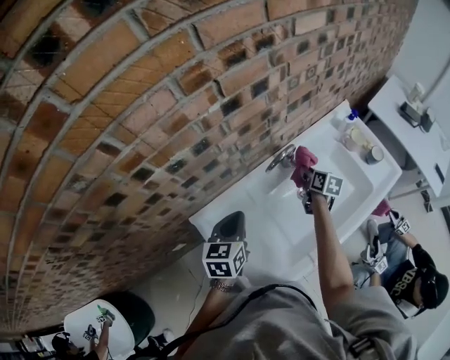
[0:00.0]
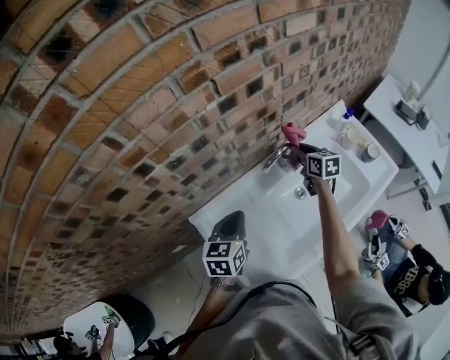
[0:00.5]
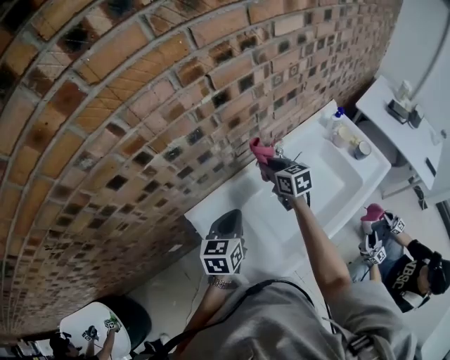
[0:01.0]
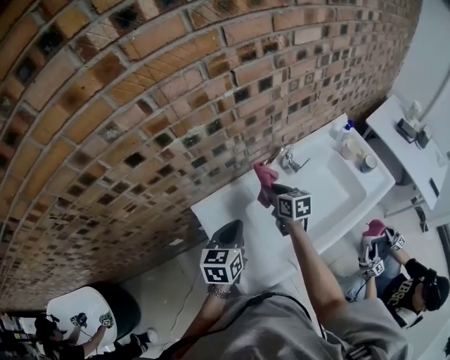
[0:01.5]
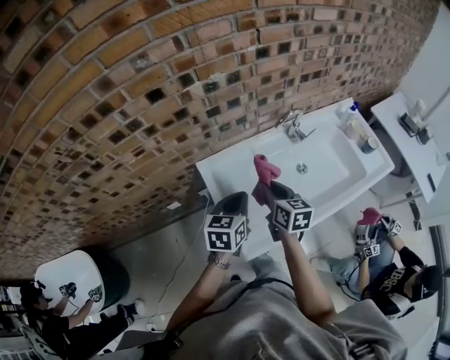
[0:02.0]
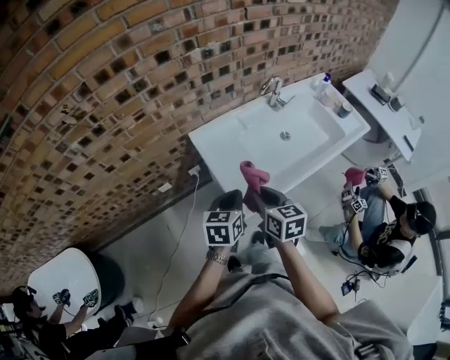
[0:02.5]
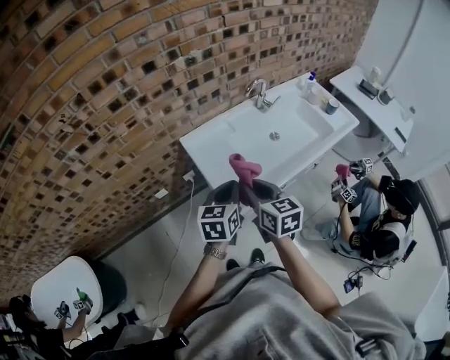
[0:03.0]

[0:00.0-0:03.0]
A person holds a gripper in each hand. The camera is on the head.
0:00.0 to 0:01.5: The left gripper goes some 10 cm backward, while the right gripper travels to the left, backward and upward by roughly 20 cm, and changes its angle by roughly 30 degrees.
0:01.5 to 0:03.0: The left gripper goes about 25 cm backward. Meanwhile the right gripper moves backward, some 35 cm.

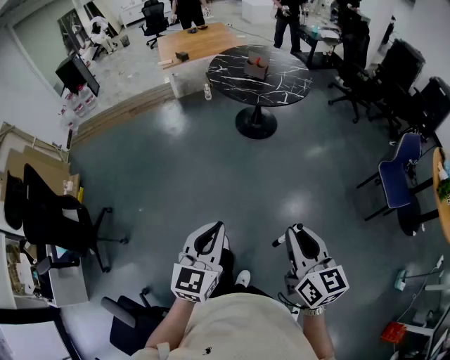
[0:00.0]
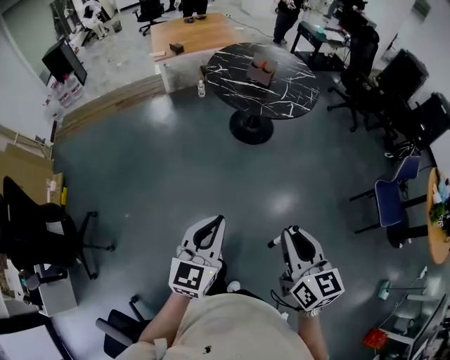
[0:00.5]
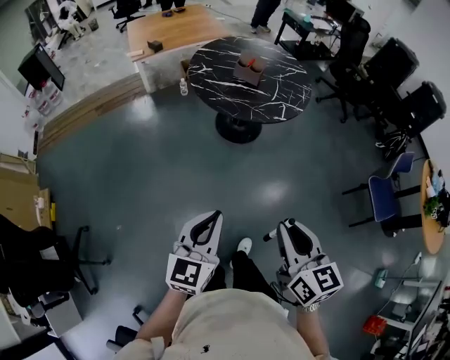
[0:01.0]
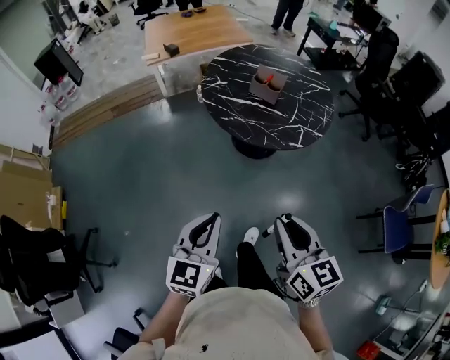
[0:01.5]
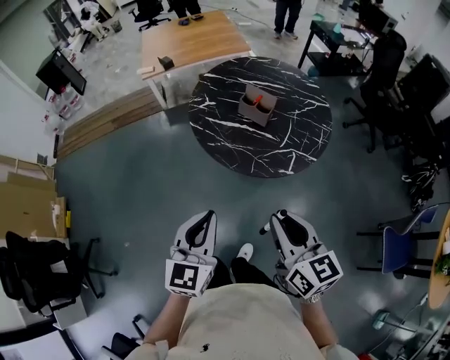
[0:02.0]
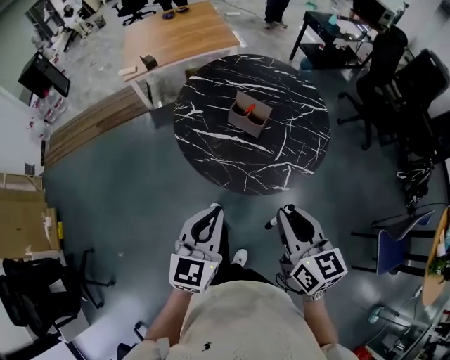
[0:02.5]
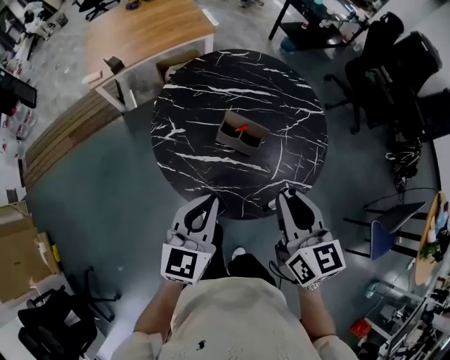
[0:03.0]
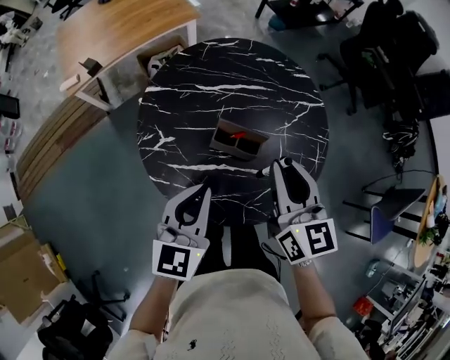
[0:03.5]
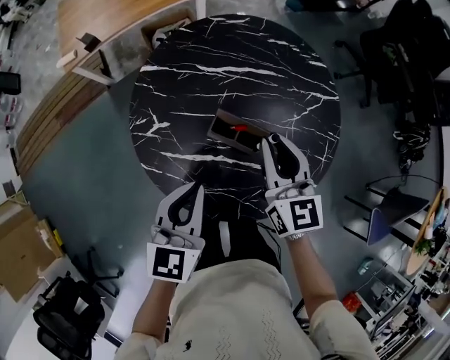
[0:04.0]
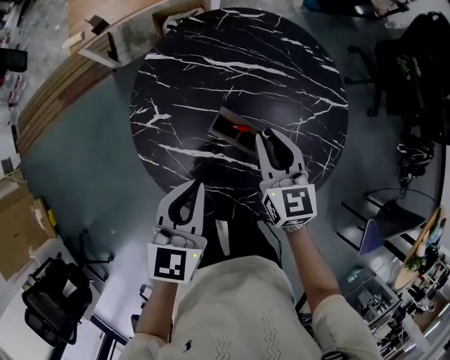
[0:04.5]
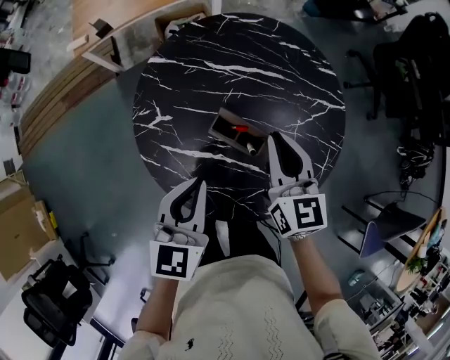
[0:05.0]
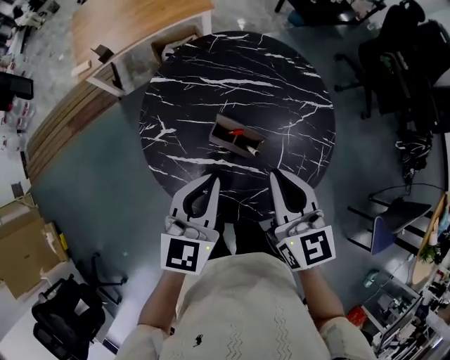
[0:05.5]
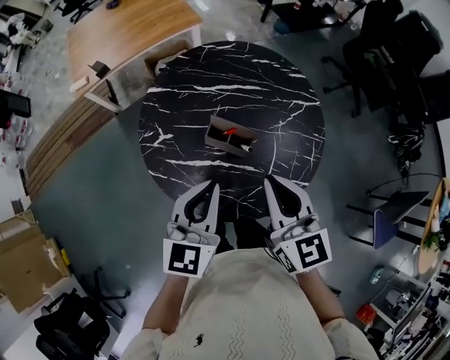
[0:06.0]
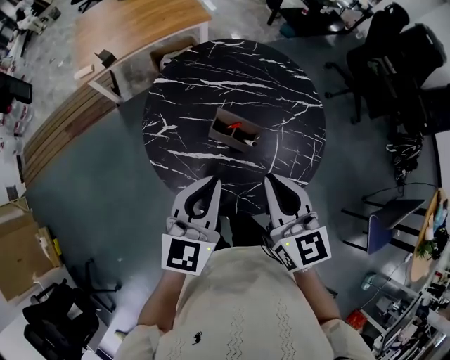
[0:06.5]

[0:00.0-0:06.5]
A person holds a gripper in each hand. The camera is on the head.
0:00.0 to 0:02.0: The two grippers travel together, forward, about 60 cm.
0:02.0 to 0:04.5: Both grippers are carried forward, some 50 cm.
0:04.5 to 0:06.5: The left gripper moves upward and backward, some 10 cm; the right gripper moves backward and upward, some 20 cm.

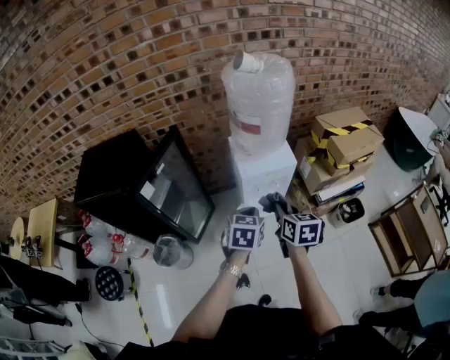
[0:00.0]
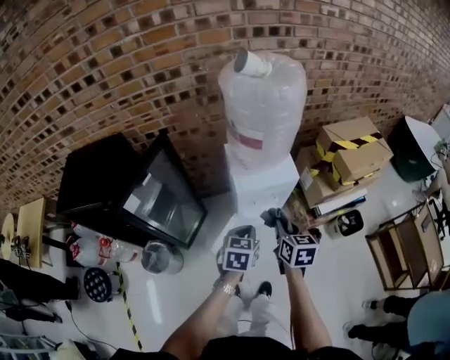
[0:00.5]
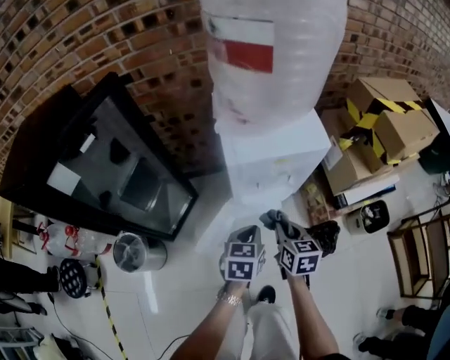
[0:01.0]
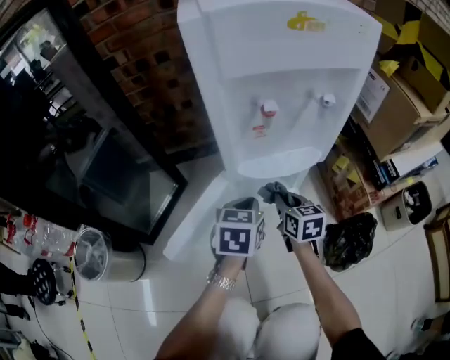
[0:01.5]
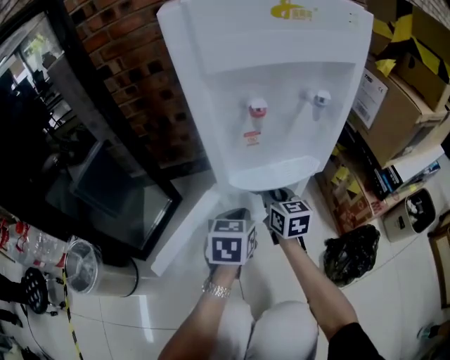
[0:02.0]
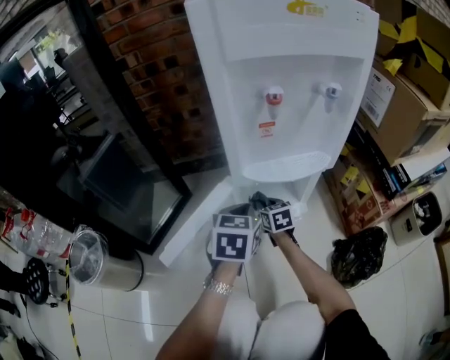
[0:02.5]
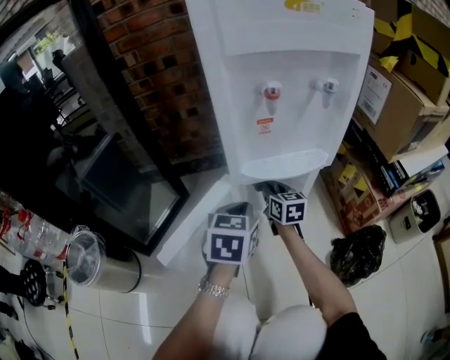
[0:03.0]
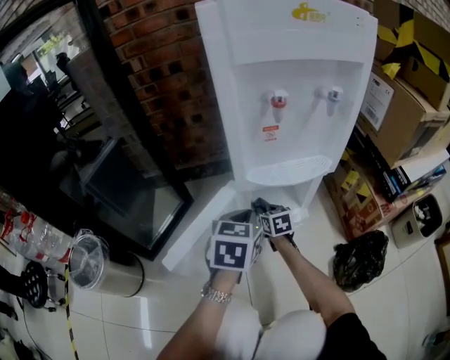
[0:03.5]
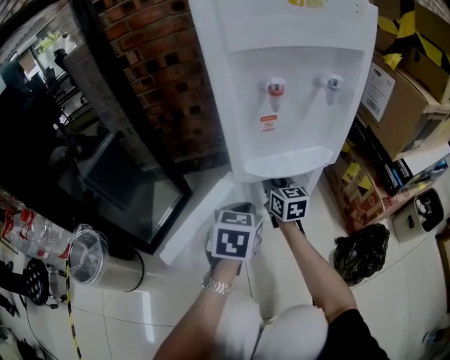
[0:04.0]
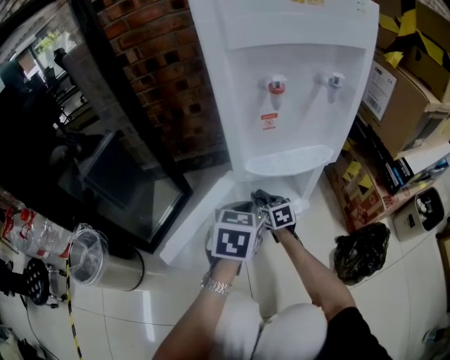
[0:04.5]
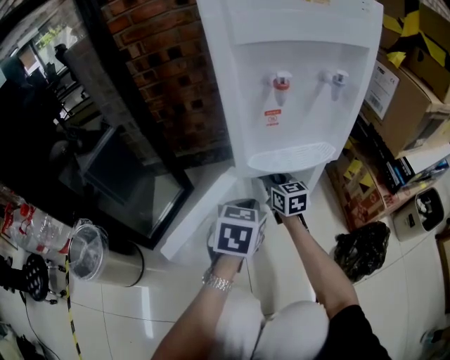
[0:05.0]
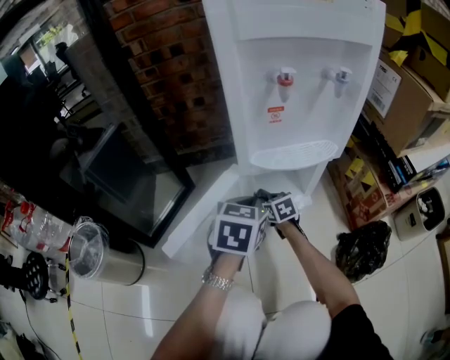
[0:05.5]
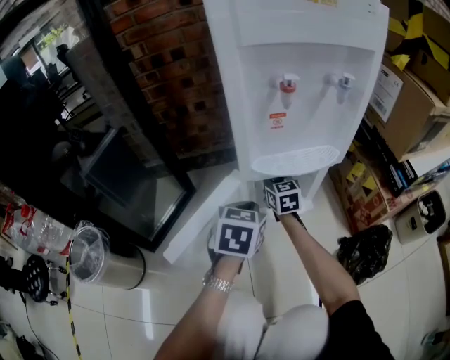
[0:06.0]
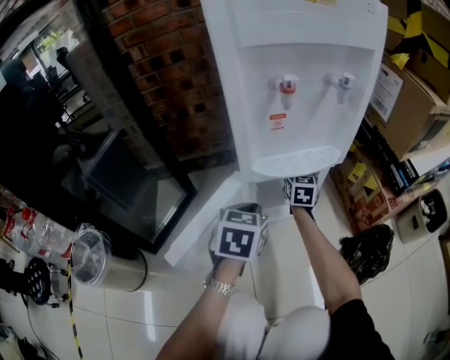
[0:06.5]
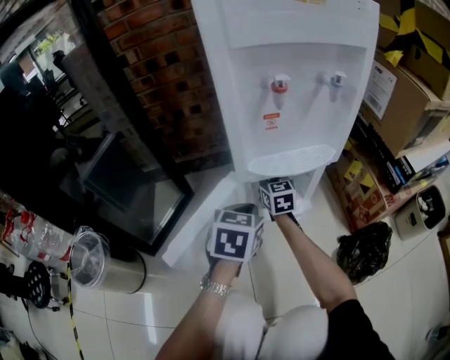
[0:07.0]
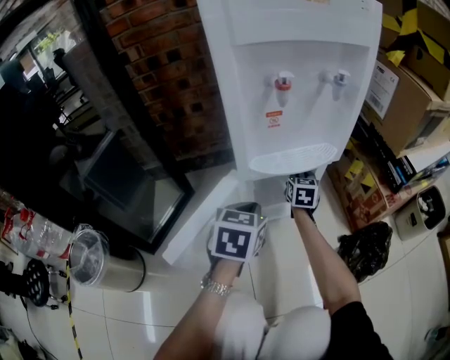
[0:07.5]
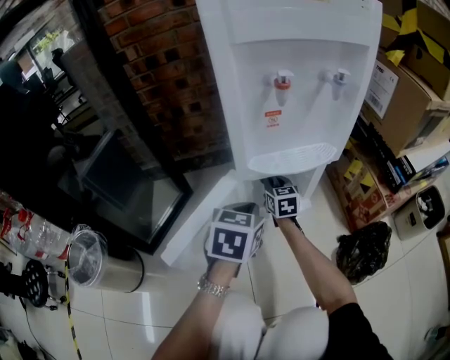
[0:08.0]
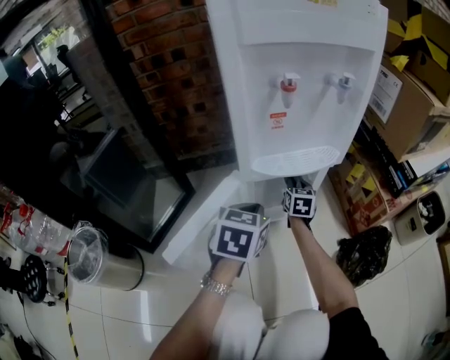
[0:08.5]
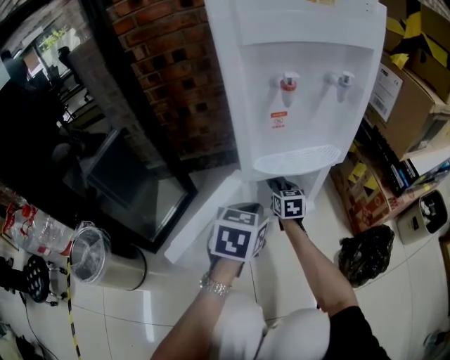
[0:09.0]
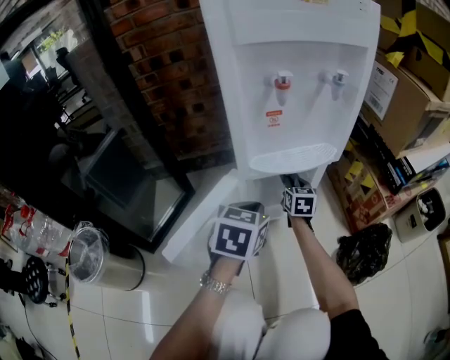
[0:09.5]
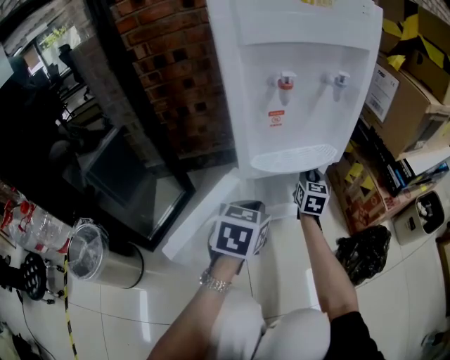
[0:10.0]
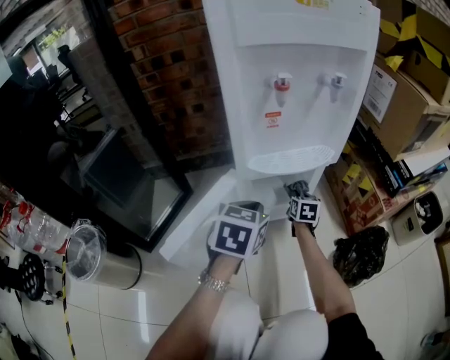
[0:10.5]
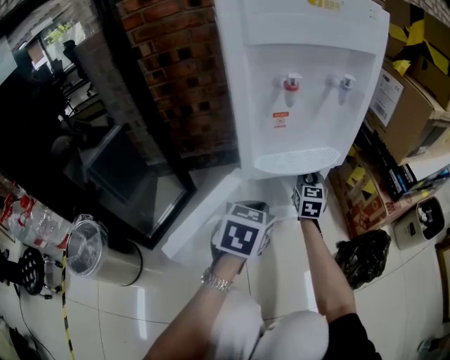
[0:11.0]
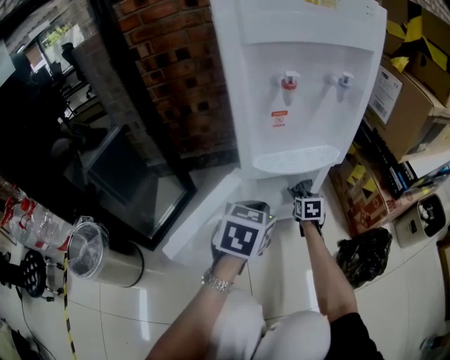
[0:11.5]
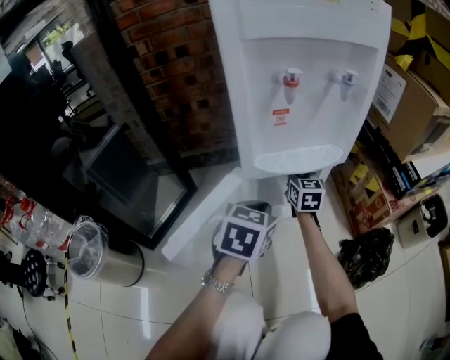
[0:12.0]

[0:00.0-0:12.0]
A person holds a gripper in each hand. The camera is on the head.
0:00.0 to 0:02.0: Both grippers move downward, roughly 70 cm.
0:02.0 to 0:04.0: The right gripper swings up and down, some 15 cm each way, with 3 reversals.
0:04.0 to 0:06.0: The right gripper swings up and down, about 15 cm each way, with 3 reversals.
0:06.0 to 0:08.0: The right gripper moves left and right over some 10 cm, changing direction 3 times.
0:08.0 to 0:10.0: The right gripper swings left and right, approximately 15 cm each way, with 2 reversals, and turns by some 20 degrees.
0:10.0 to 0:12.0: The right gripper goes up and down, approximately 15 cm each way, reversing 3 times.

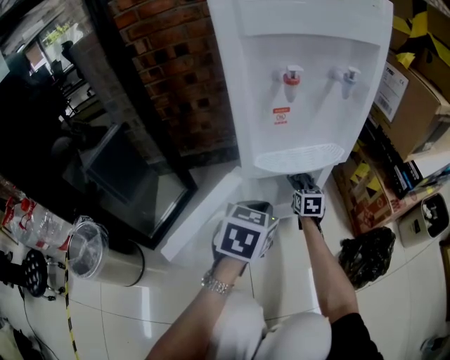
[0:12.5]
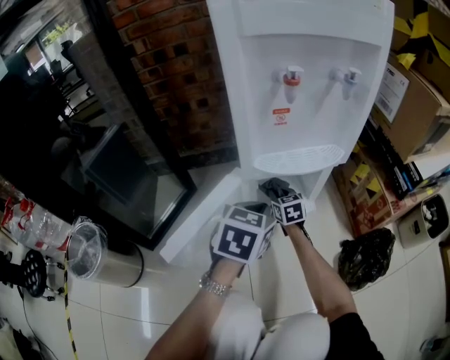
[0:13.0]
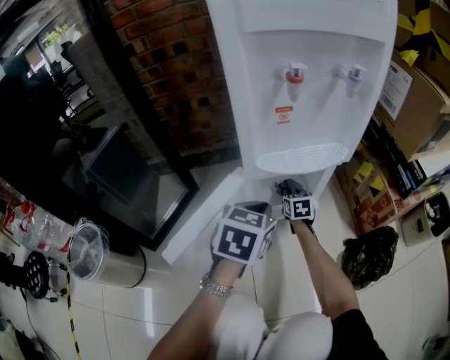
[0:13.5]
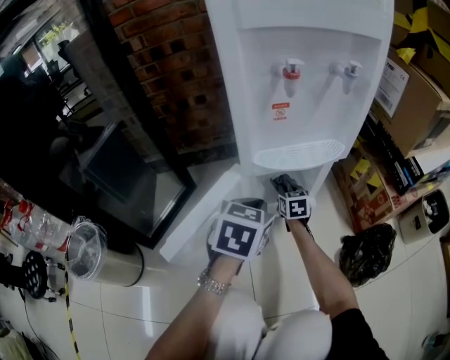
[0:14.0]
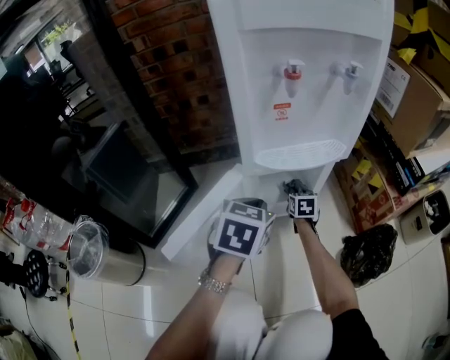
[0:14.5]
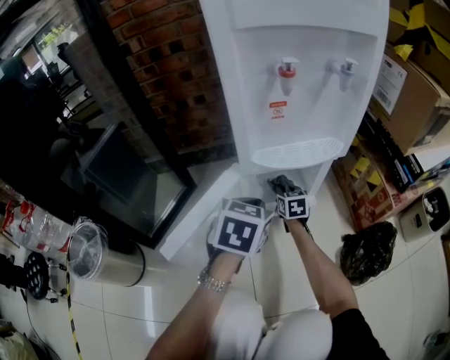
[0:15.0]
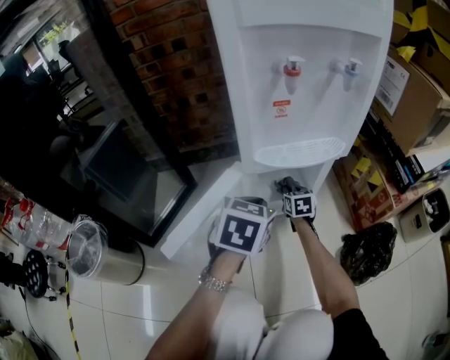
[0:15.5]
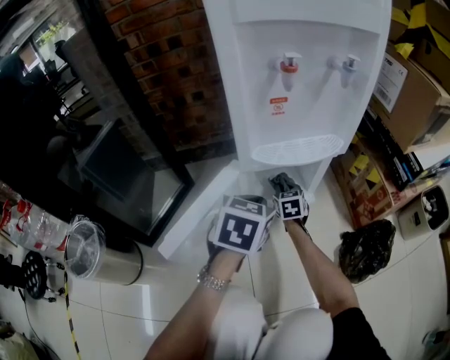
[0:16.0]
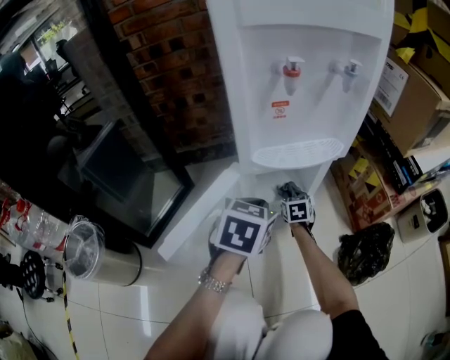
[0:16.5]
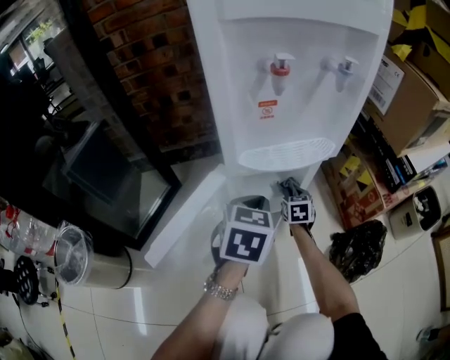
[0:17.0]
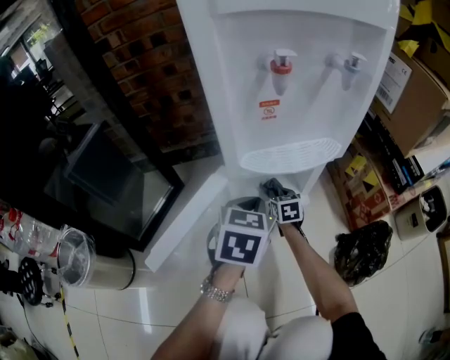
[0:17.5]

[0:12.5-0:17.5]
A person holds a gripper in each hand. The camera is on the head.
0:12.5 to 0:15.0: The right gripper goes left and right, some 10 cm each way, reversing 2 times.
0:15.0 to 0:17.5: The right gripper reaches approximately 10 cm to the right, then returns.
